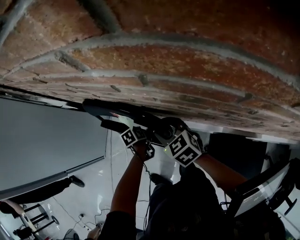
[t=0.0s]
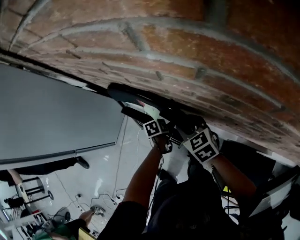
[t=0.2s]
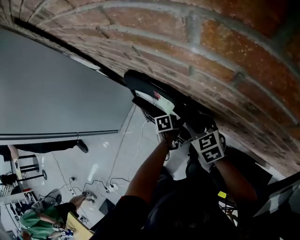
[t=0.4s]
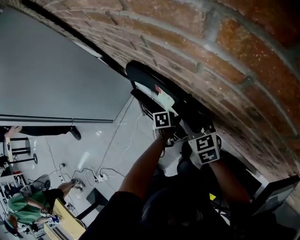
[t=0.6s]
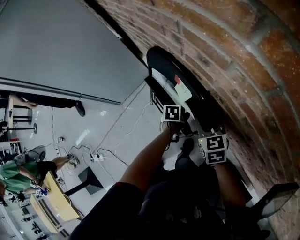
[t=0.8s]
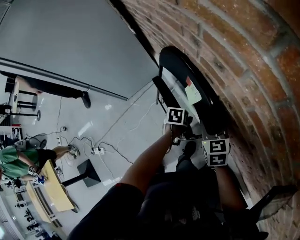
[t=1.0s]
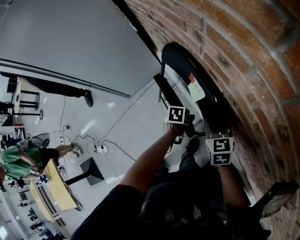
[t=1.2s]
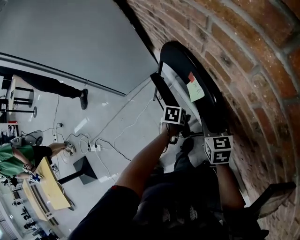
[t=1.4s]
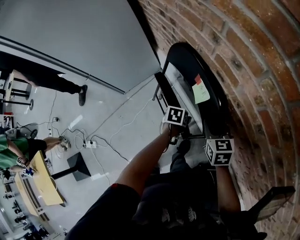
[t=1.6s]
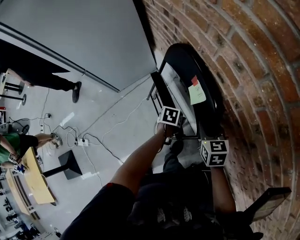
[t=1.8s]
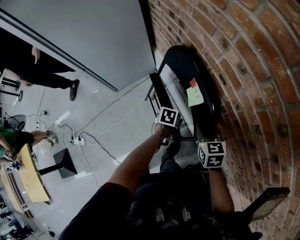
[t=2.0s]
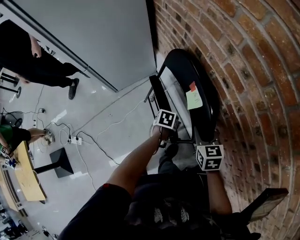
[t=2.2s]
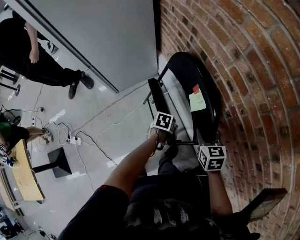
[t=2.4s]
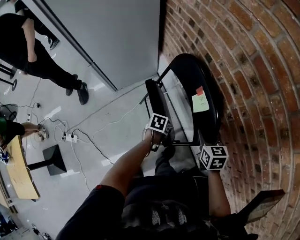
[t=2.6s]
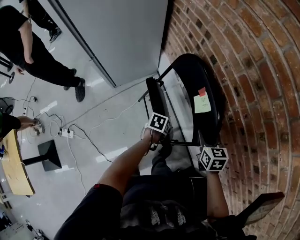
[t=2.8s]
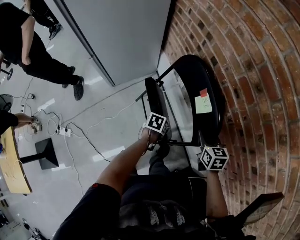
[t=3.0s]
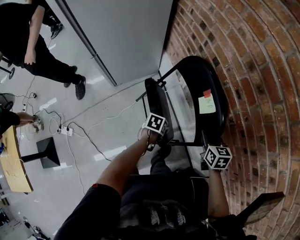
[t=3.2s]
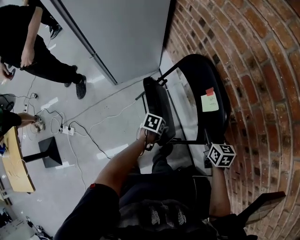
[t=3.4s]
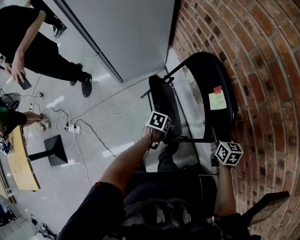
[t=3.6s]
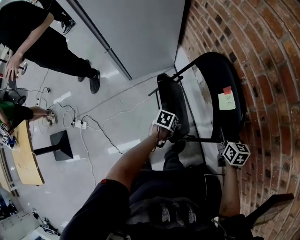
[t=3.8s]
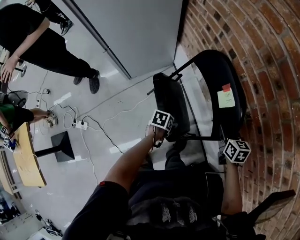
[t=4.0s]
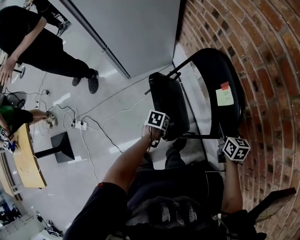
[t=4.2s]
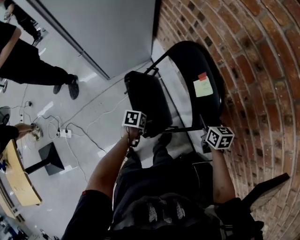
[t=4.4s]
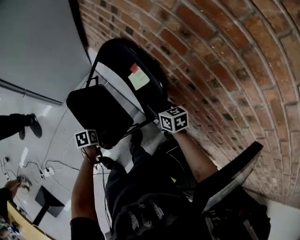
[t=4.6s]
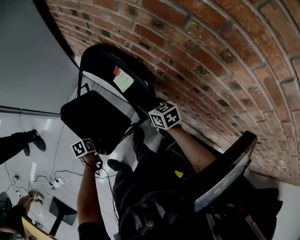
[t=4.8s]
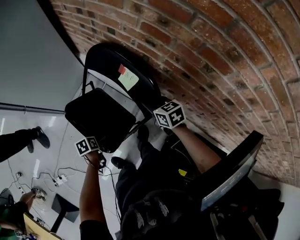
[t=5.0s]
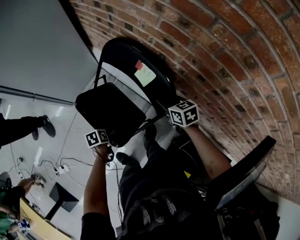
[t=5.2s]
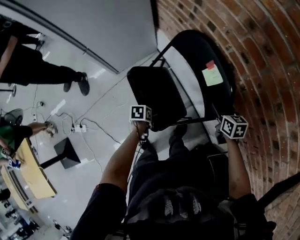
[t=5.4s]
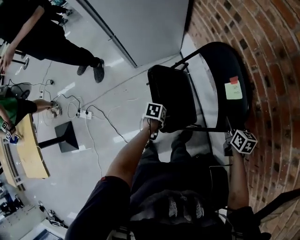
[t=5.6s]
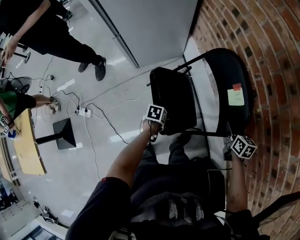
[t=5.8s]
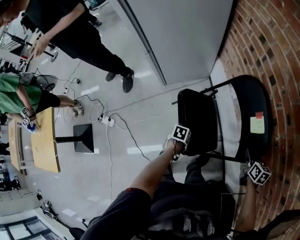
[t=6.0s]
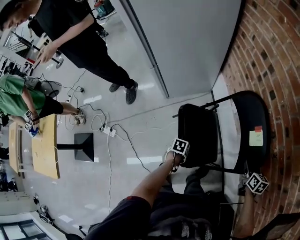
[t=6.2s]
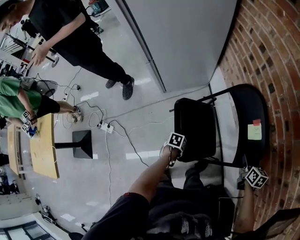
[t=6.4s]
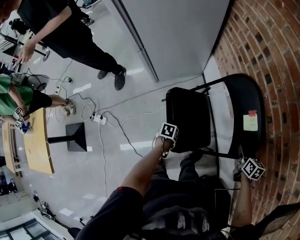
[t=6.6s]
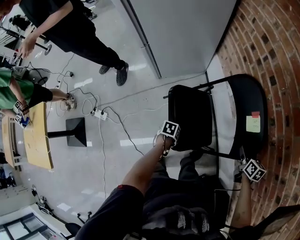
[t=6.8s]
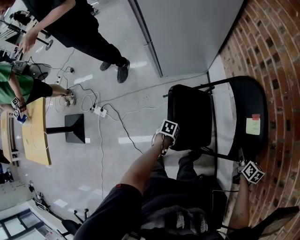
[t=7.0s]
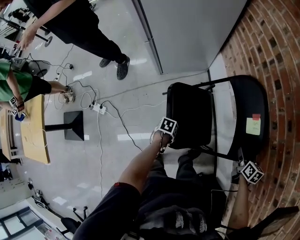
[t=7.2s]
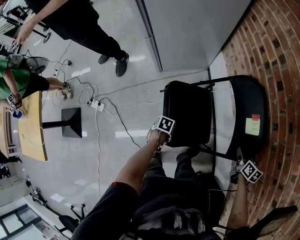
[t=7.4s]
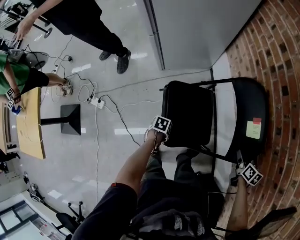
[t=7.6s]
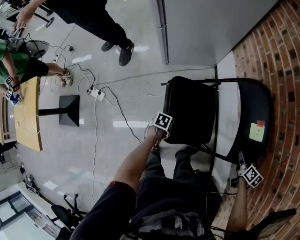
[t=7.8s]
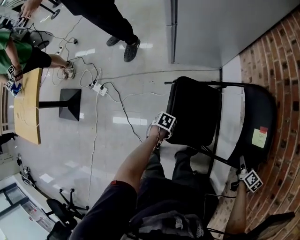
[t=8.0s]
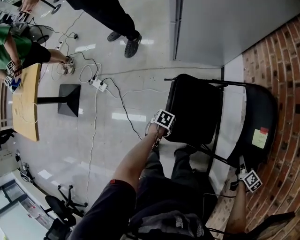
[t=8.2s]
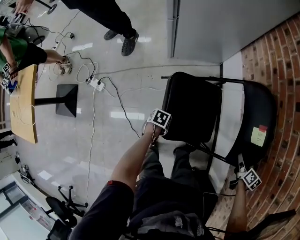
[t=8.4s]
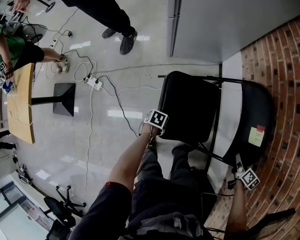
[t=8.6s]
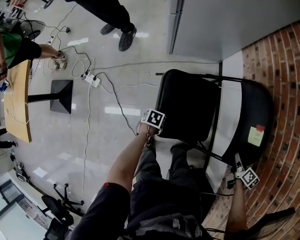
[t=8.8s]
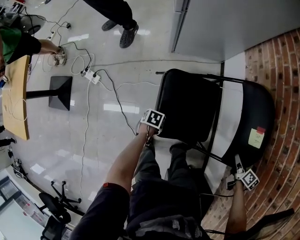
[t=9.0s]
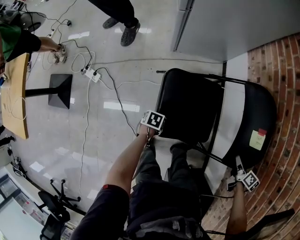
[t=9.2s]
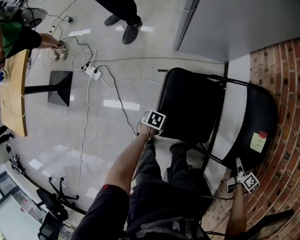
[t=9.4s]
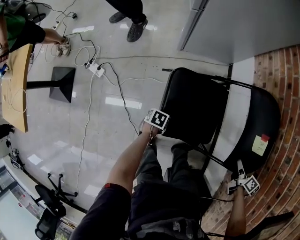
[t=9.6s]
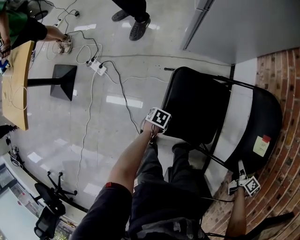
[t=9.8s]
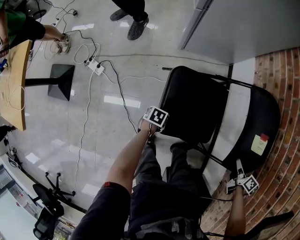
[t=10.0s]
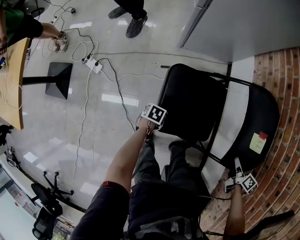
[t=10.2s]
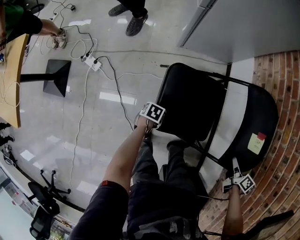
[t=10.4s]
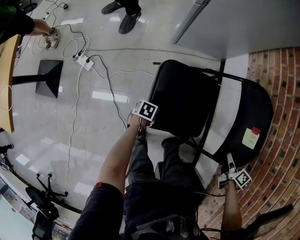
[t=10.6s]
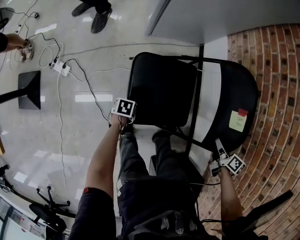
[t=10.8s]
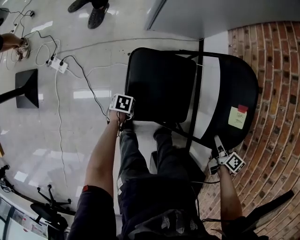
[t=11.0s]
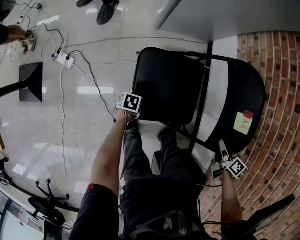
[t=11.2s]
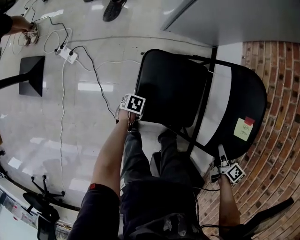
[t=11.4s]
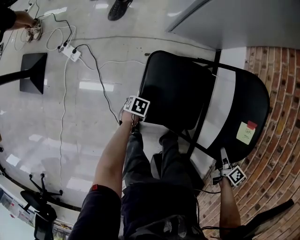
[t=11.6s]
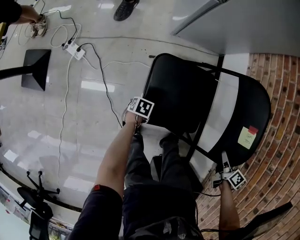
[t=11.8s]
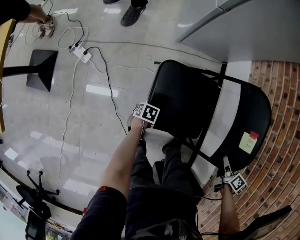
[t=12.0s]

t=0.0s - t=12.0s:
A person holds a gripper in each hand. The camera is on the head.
t=0.0s - t=1.6s: The left gripper moves roughly 5 cm.
t=1.6s - t=3.0s: The left gripper shifts about 15 cm backward and to the left. Meanwhile the right gripper moves backward, about 5 cm.
t=3.0s - t=4.4s: The left gripper heads backward, covering some 5 cm.
t=4.4s - t=6.0s: The left gripper goes approximately 10 cm to the left and downward, while the right gripper moves some 5 cm.
t=6.0s - t=7.6s: The left gripper changes place by some 10 cm. The right gripper shifts by roughly 5 cm.
t=7.6s - t=9.0s: The left gripper ends up some 10 cm from where it was. The right gripper changes place by approximately 5 cm.
t=9.0s - t=10.4s: The grippers move only a little.
t=10.4s - t=12.0s: The left gripper changes place by roughly 5 cm. The right gripper shifts roughly 5 cm to the left.

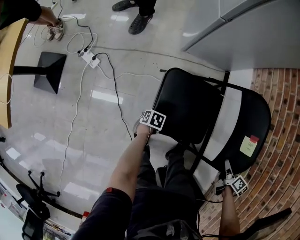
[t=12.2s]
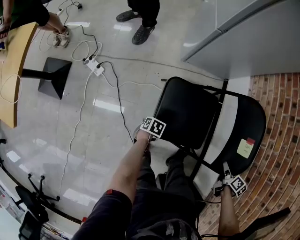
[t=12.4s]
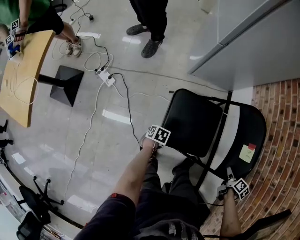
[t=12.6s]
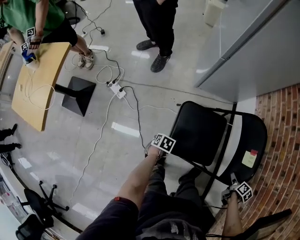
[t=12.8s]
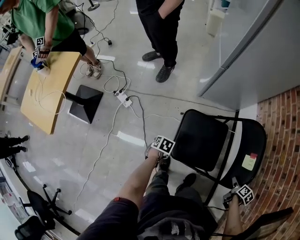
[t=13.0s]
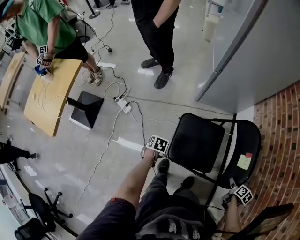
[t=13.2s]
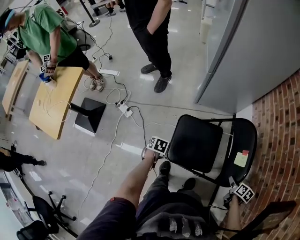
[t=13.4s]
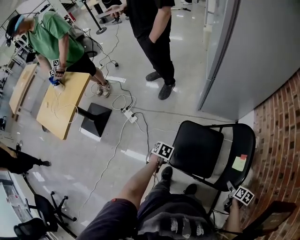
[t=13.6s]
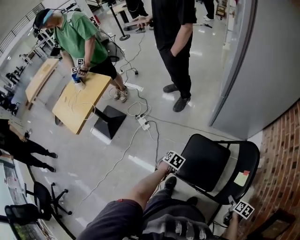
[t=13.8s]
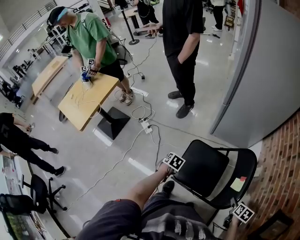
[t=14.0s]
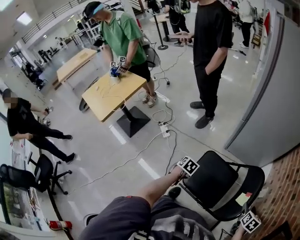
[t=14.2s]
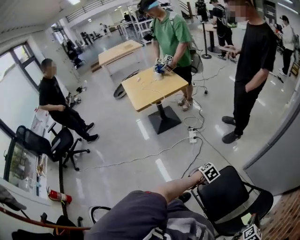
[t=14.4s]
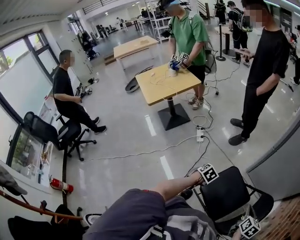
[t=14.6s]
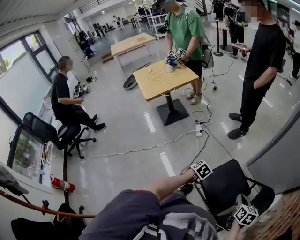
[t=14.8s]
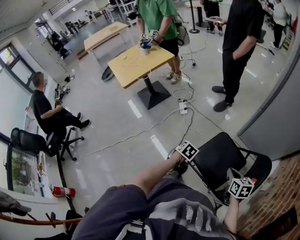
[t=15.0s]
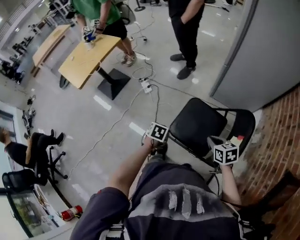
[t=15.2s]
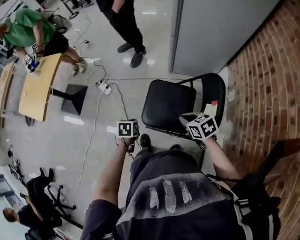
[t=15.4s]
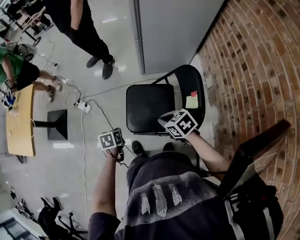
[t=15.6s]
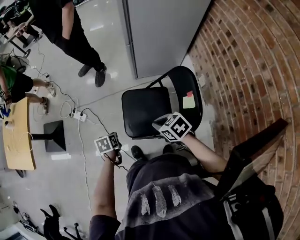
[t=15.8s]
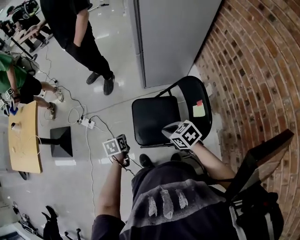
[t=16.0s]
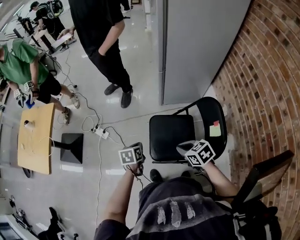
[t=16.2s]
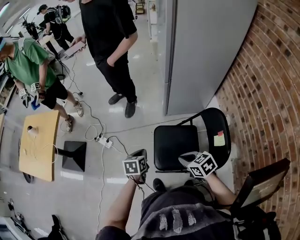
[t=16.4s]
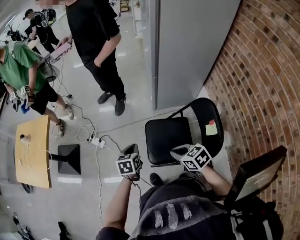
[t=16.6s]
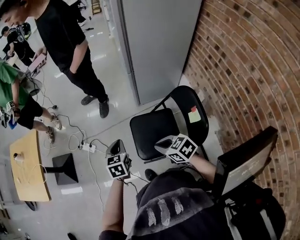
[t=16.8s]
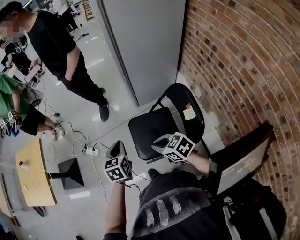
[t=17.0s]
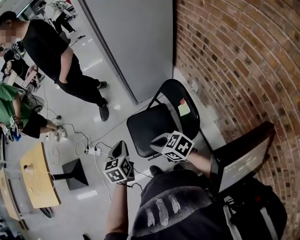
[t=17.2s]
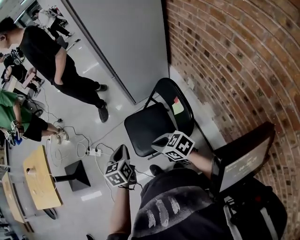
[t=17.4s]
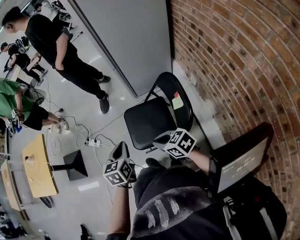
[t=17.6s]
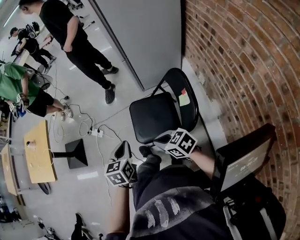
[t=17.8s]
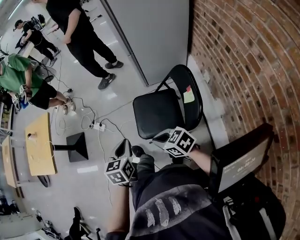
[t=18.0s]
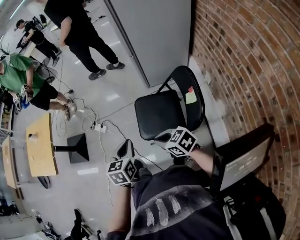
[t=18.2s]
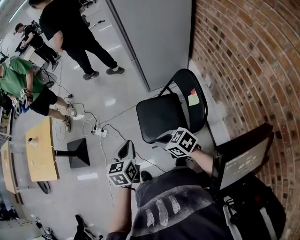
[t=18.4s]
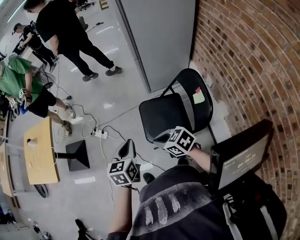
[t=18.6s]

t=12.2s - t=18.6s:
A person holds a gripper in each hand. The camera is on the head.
t=12.2s - t=13.8s: The left gripper goes about 25 cm upward. The right gripper changes place by roughly 5 cm, and opens.
t=13.8s - t=15.4s: The right gripper ends up approximately 25 cm from where it was, twists roughly 50 degrees counterclockwise, seen from behind, and closes. Meanwhile the left gripper changes place by some 10 cm, and changes its angle by roughly 20 degrees.
t=15.4s - t=17.0s: The right gripper shifts approximately 15 cm to the left and upward; the left gripper shifts approximately 20 cm upward and forward, and points its fingers some 30 degrees further upward.
t=17.0s - t=18.6s: The left gripper is displaced backward and to the left by about 10 cm. The right gripper moves to the left, approximately 10 cm.

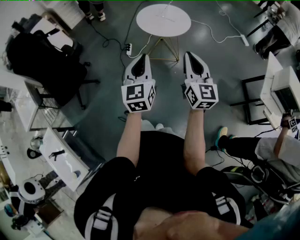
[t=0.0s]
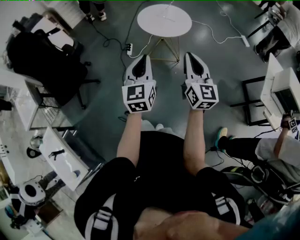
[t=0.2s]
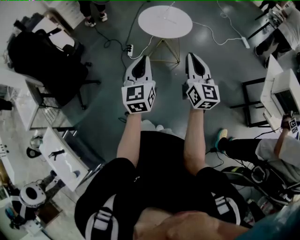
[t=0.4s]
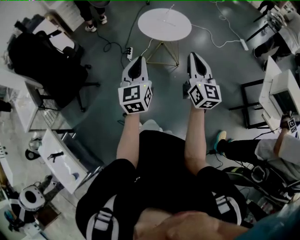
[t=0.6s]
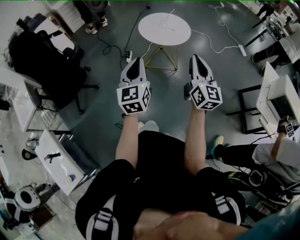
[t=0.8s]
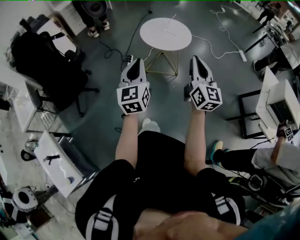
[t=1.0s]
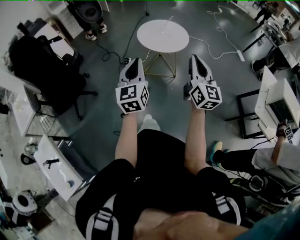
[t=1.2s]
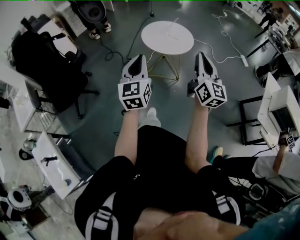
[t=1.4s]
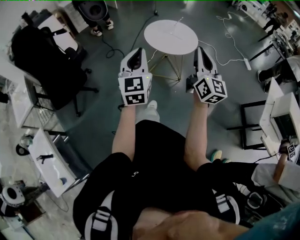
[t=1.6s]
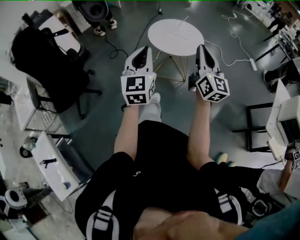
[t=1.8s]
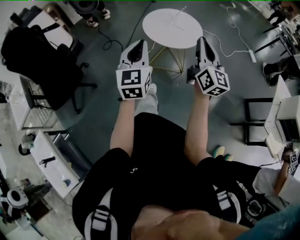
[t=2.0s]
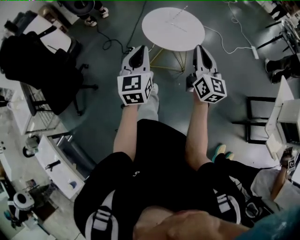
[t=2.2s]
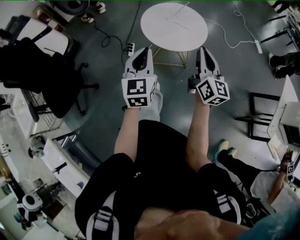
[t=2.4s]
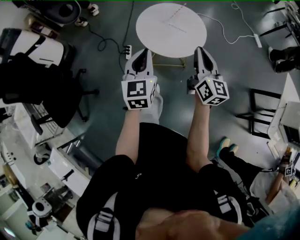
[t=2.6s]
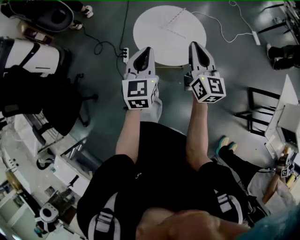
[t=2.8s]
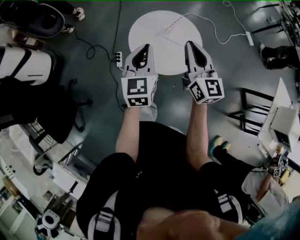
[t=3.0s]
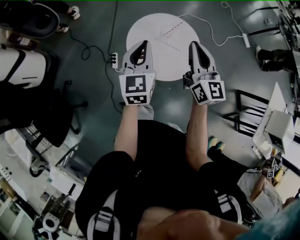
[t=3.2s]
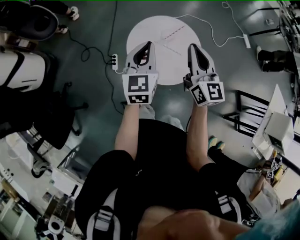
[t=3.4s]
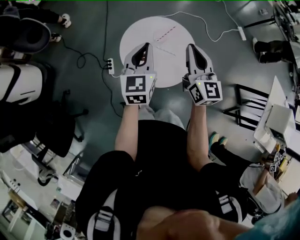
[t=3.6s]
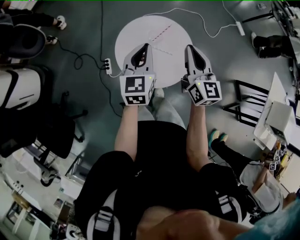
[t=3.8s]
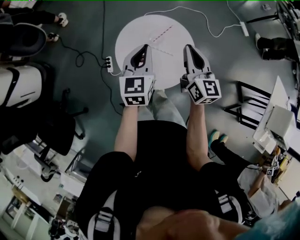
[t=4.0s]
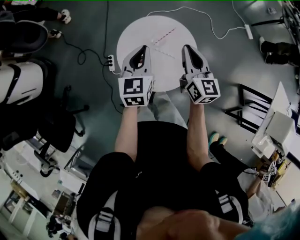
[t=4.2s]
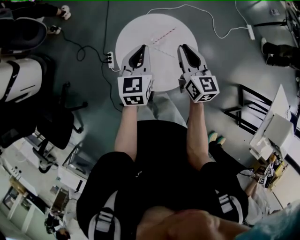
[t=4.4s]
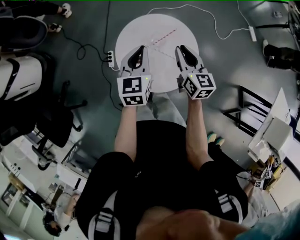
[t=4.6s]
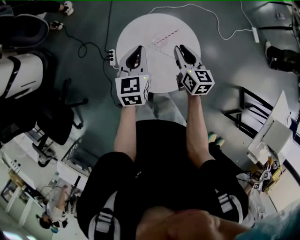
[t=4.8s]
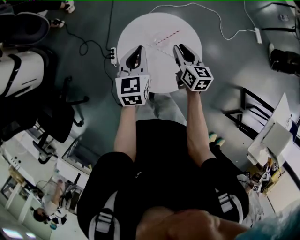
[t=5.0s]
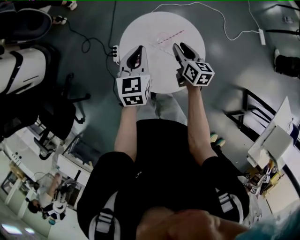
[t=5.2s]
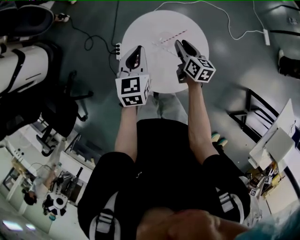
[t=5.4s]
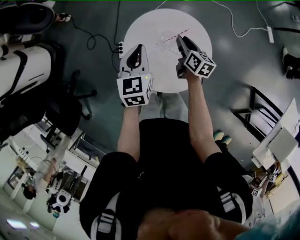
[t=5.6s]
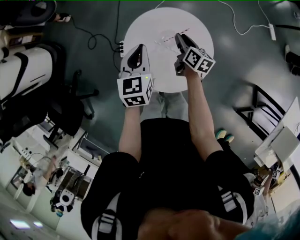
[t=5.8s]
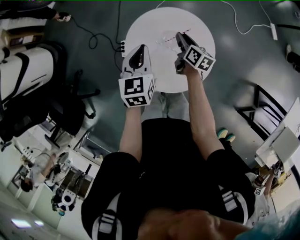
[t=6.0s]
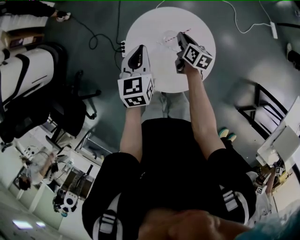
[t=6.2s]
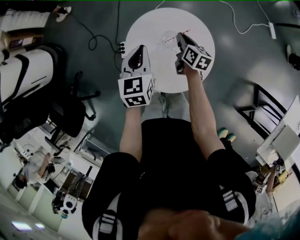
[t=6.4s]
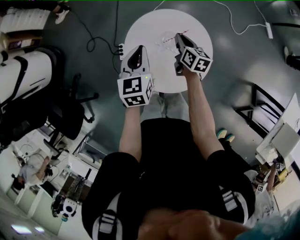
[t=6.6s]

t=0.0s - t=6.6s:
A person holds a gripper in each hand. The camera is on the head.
t=0.0s - t=1.6s: Both grippers travel together forward, approximately 10 cm.
t=1.6s - t=3.2s: The pair of grippers is taken forward, about 50 cm. The left gripper swivels approximately 20 degrees.
t=3.2s - t=5.0s: The left gripper travels forward, downward and to the right by roughly 20 cm. The right gripper goes some 30 cm downward and forward, and changes its angle by some 30 degrees.
t=5.0s - t=6.6s: The right gripper is displaced downward and forward by roughly 10 cm.
